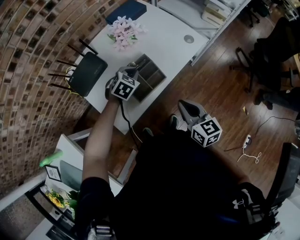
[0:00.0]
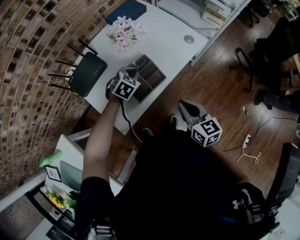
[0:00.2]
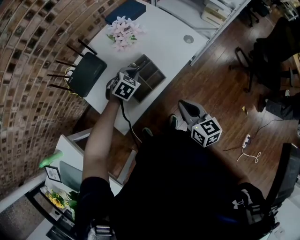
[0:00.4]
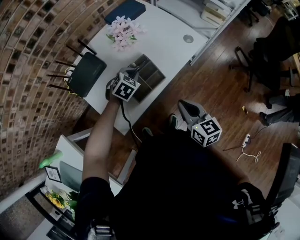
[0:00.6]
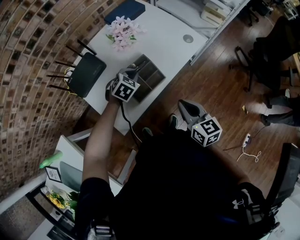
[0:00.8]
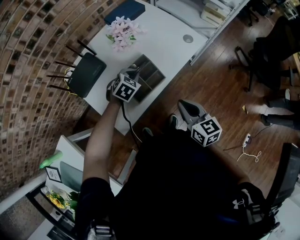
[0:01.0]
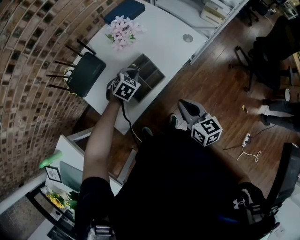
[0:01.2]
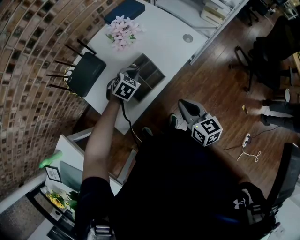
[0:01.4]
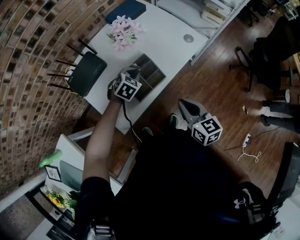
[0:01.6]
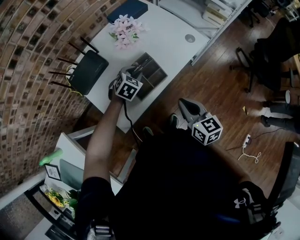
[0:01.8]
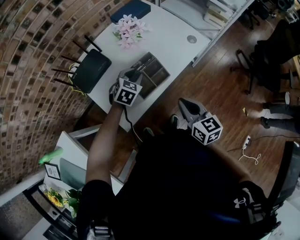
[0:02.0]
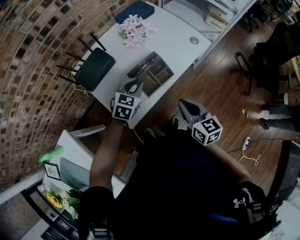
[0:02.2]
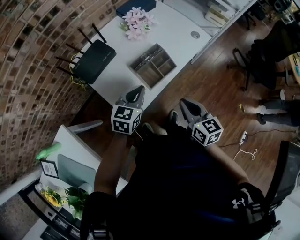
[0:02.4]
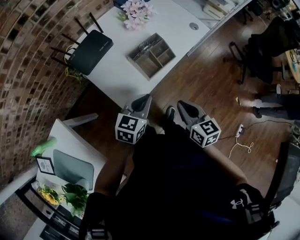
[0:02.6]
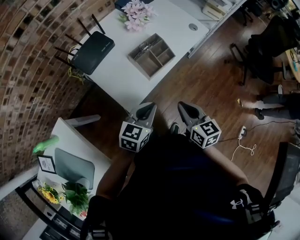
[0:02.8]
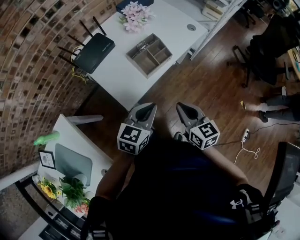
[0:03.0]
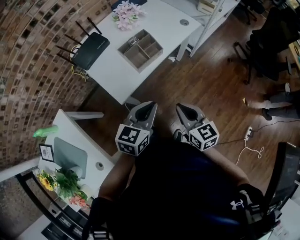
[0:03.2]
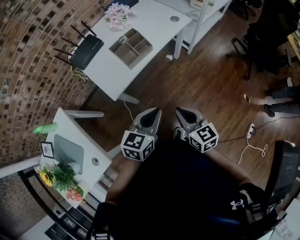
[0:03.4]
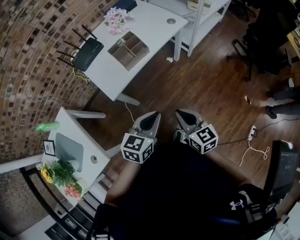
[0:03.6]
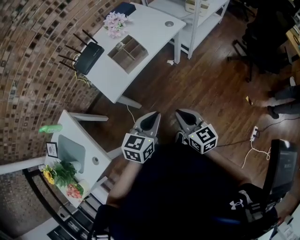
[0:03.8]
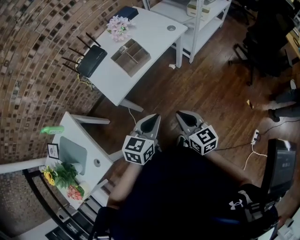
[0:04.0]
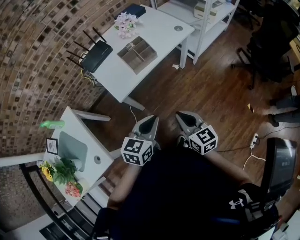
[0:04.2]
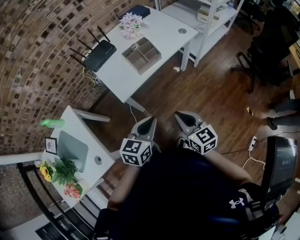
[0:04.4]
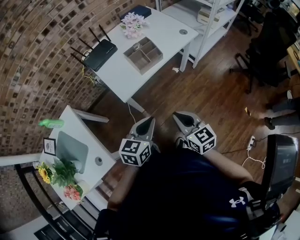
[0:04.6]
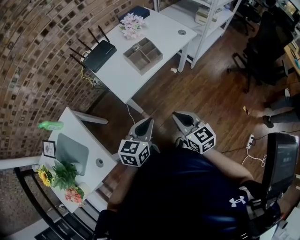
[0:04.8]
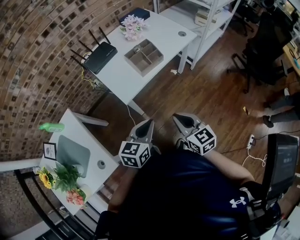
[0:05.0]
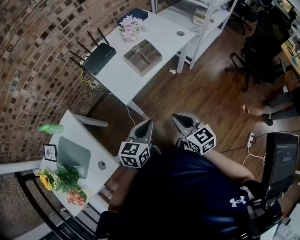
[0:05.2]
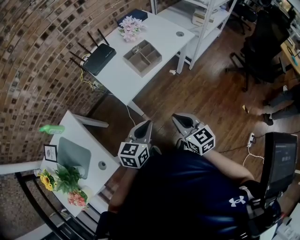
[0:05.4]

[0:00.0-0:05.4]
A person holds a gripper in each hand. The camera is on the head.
0:00.0 to 0:01.4: The grippers move only a little.
0:01.4 to 0:02.8: The right gripper travels backward and to the left by about 15 cm. Meanwhile the left gripper heads backward, covering about 25 cm, rotates roughly 40 degrees, and opens, then closes once more.
0:02.8 to 0:04.0: The grippers both shift to the right and backward by roughly 20 cm.
0:04.0 to 0:05.4: The two grippers go some 10 cm to the left.

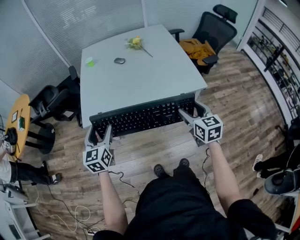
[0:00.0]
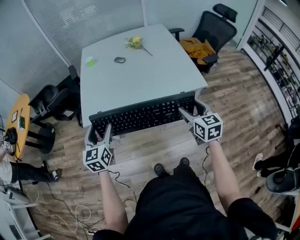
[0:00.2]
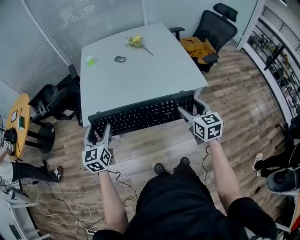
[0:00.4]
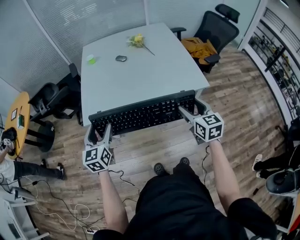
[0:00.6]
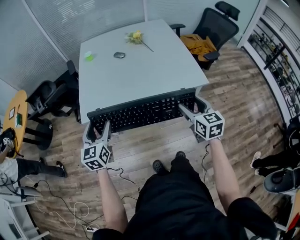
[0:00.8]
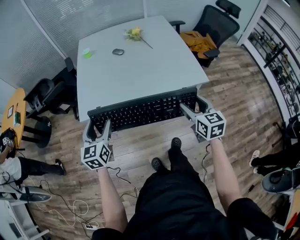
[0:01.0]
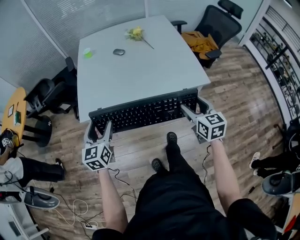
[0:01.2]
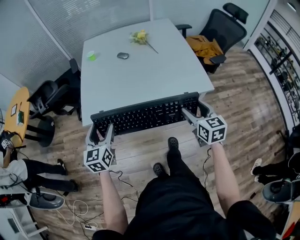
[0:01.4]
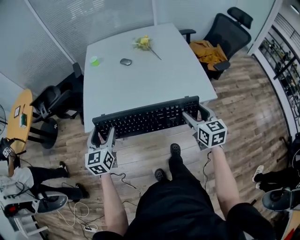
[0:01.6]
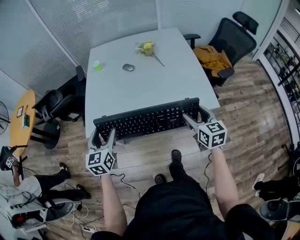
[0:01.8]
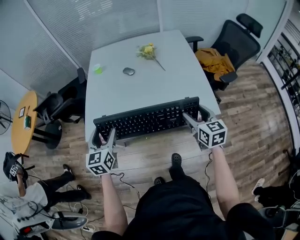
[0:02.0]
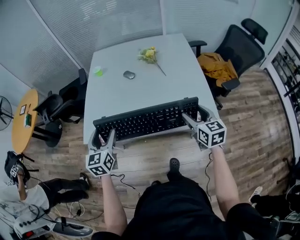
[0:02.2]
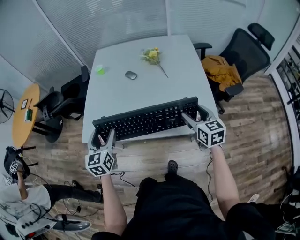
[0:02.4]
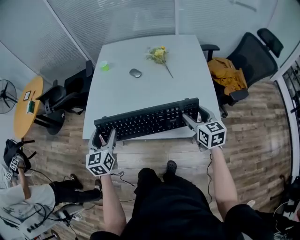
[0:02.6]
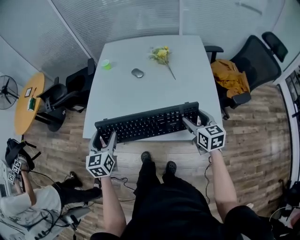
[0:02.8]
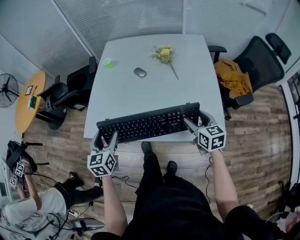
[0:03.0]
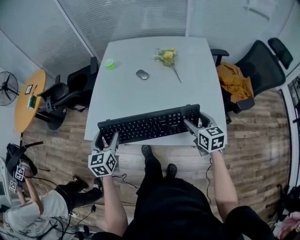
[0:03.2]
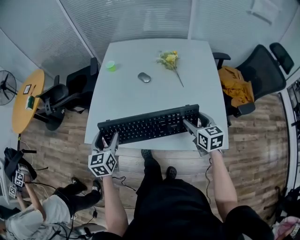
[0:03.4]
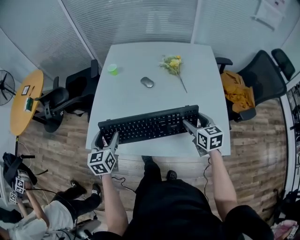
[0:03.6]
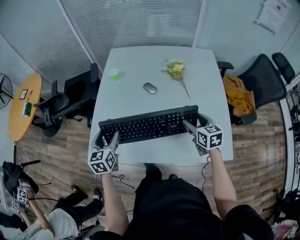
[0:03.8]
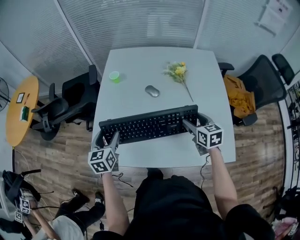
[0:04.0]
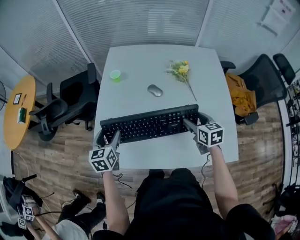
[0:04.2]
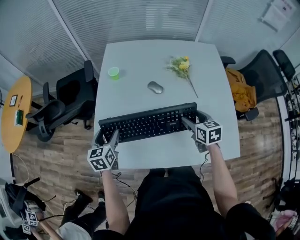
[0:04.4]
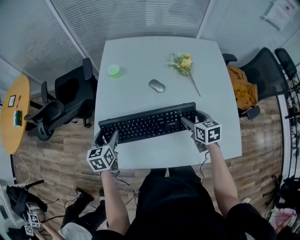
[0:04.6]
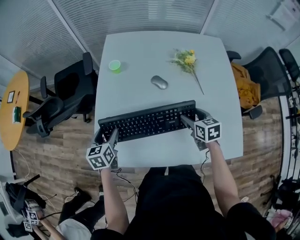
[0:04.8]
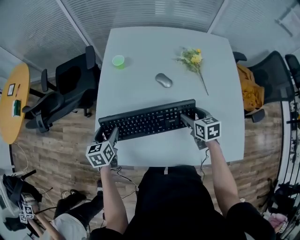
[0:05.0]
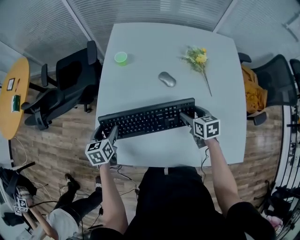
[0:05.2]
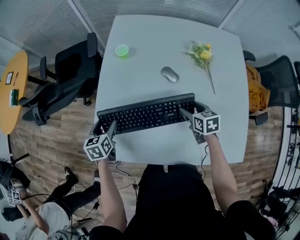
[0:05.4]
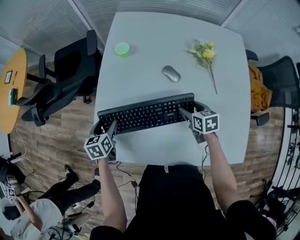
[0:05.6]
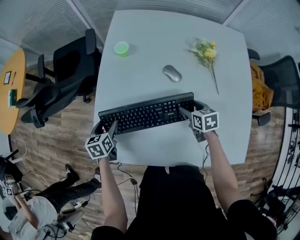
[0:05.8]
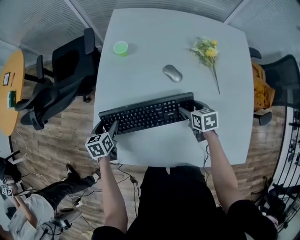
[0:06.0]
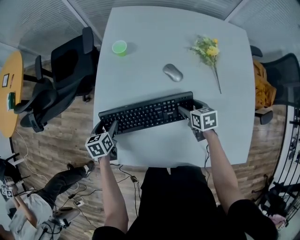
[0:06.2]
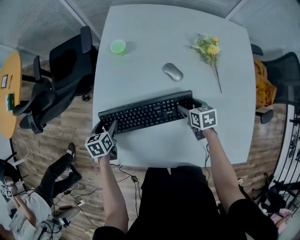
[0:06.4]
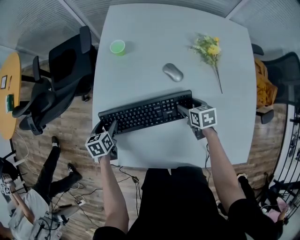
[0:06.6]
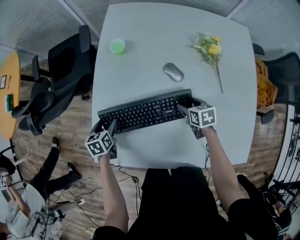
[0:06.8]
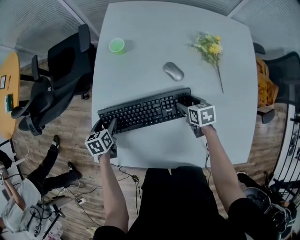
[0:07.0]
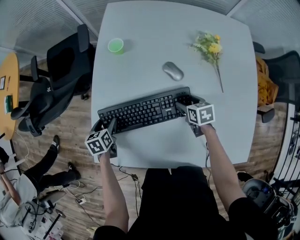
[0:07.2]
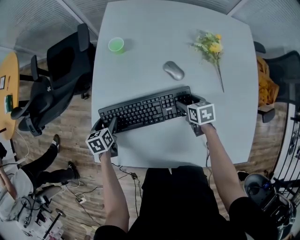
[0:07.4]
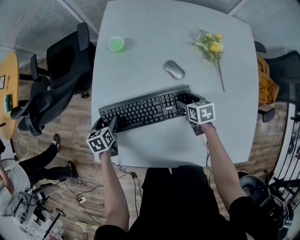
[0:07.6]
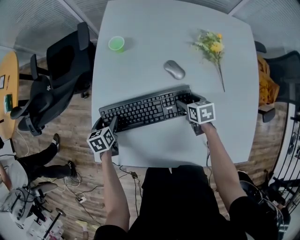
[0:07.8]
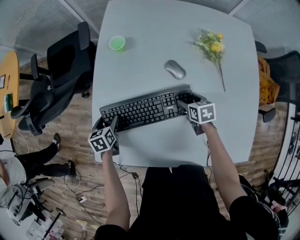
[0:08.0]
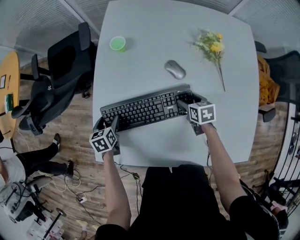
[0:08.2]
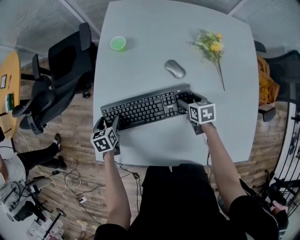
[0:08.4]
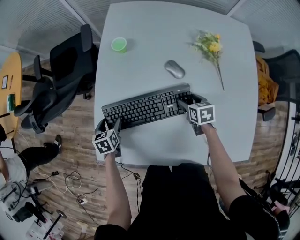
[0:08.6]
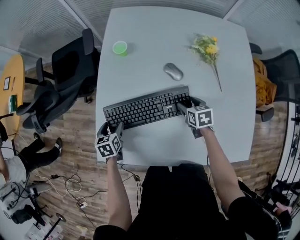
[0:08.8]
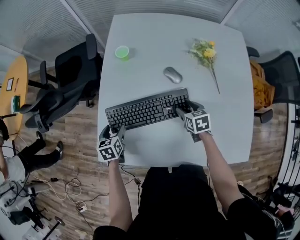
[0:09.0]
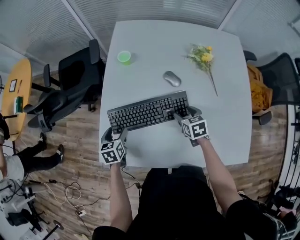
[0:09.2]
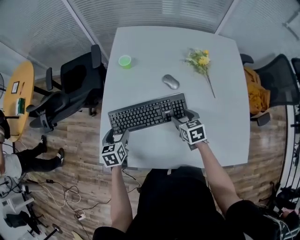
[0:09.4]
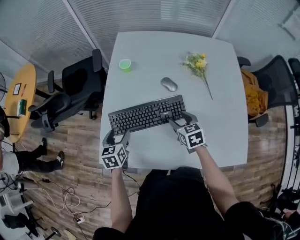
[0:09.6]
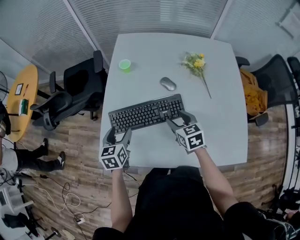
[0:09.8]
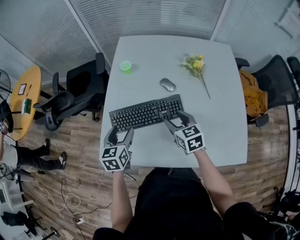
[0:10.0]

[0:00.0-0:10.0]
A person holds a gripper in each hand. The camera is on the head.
0:00.0 to 0:01.4: The grippers stay close to where they were, moving slightly.
0:01.4 to 0:02.8: The right gripper travels forward and to the right by approximately 25 cm; the left gripper shifts approximately 15 cm forward and to the right.
0:02.8 to 0:04.2: Both grippers move forward and to the left, roughly 25 cm.
0:04.2 to 0:05.8: The left gripper shifts approximately 15 cm downward, to the left and forward, and turns by roughly 20 degrees. Meanwhile the right gripper shifts approximately 20 cm downward, forward and to the left.
0:05.8 to 0:07.2: Both grippers move downward, about 5 cm.
0:07.2 to 0:08.6: The grippers stay close to where they were, moving slightly.
0:08.6 to 0:10.0: The left gripper is displaced upward, to the right and backward by roughly 20 cm, and turns by about 30 degrees, while the right gripper heads upward, backward and to the left, covering some 20 cm, and rotates some 30 degrees.

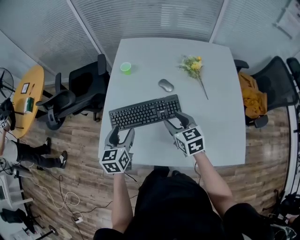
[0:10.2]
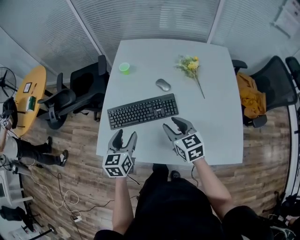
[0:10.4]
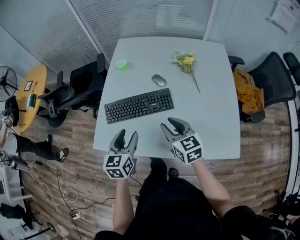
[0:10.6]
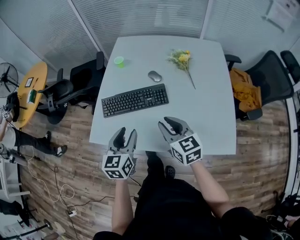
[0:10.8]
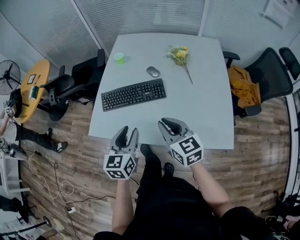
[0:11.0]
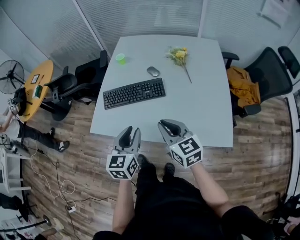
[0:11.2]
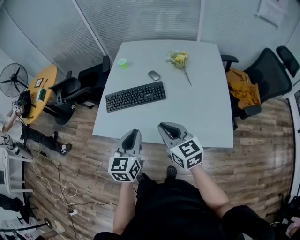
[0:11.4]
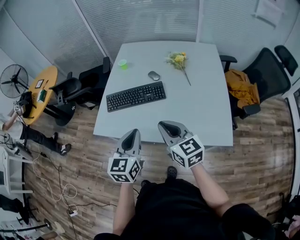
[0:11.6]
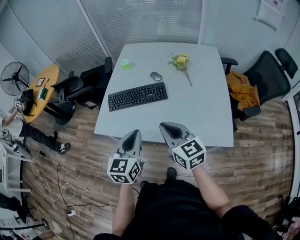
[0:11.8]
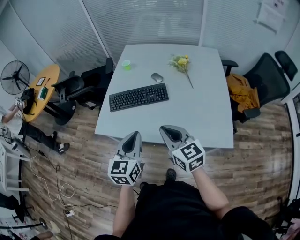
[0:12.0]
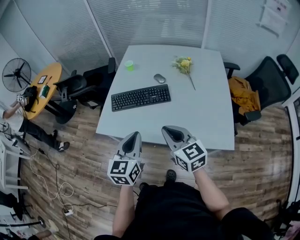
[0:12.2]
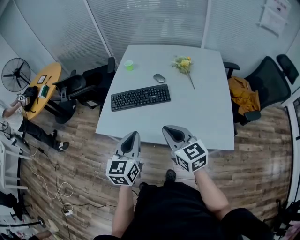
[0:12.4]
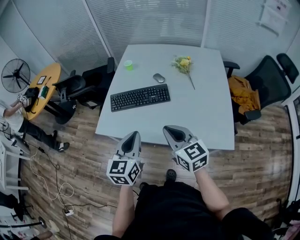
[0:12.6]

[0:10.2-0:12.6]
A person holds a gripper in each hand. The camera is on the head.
0:10.2 to 0:11.4: The right gripper shifts roughly 25 cm backward and upward, and closes its fingers. Meanwhile the left gripper shifts approximately 25 cm backward and to the right, and closes up.
0:11.4 to 0:12.6: The grippers move only a little.

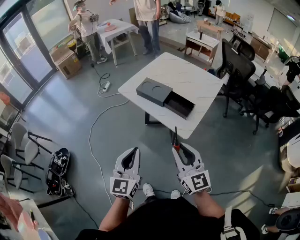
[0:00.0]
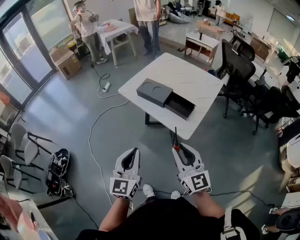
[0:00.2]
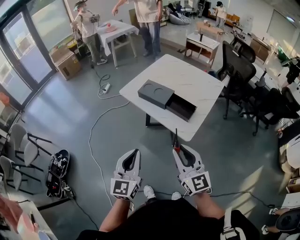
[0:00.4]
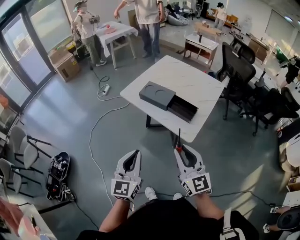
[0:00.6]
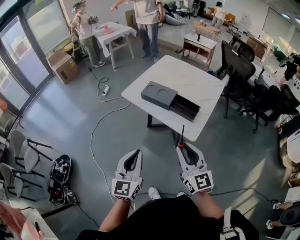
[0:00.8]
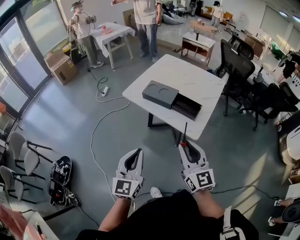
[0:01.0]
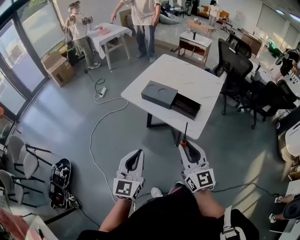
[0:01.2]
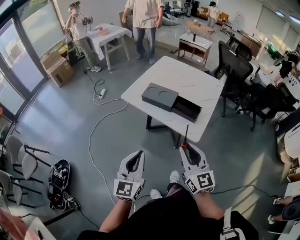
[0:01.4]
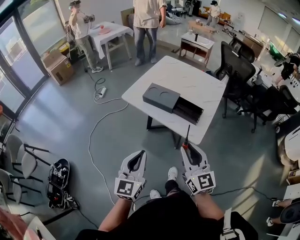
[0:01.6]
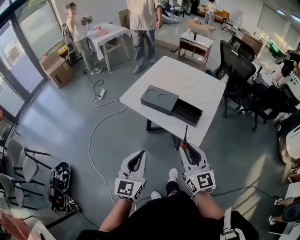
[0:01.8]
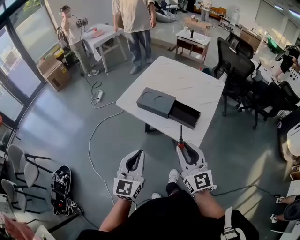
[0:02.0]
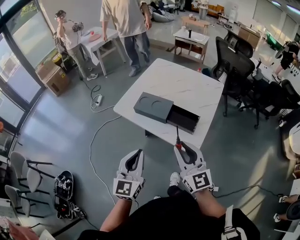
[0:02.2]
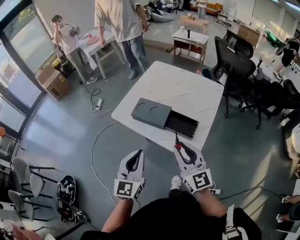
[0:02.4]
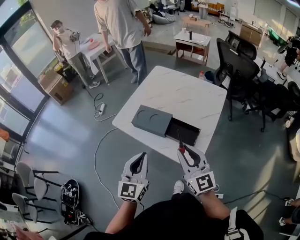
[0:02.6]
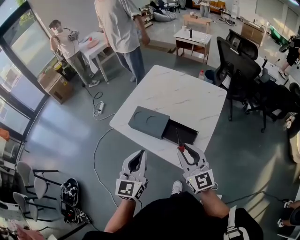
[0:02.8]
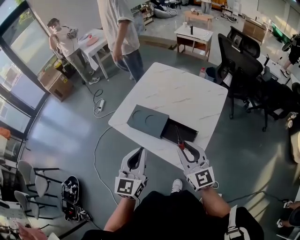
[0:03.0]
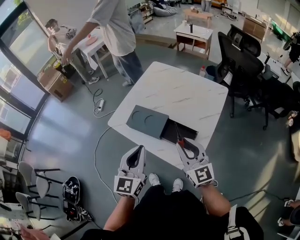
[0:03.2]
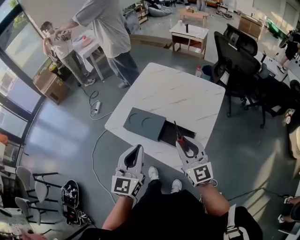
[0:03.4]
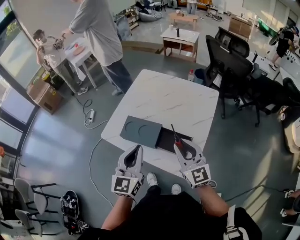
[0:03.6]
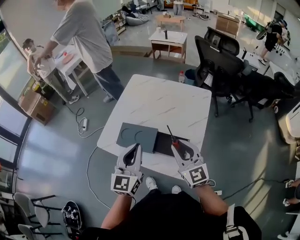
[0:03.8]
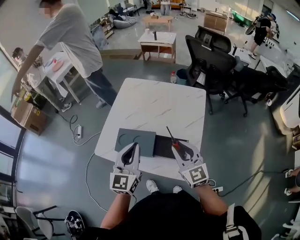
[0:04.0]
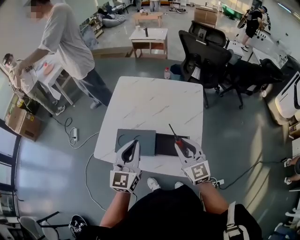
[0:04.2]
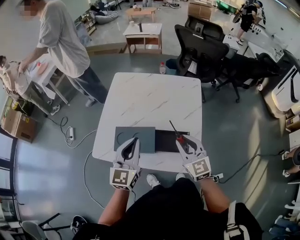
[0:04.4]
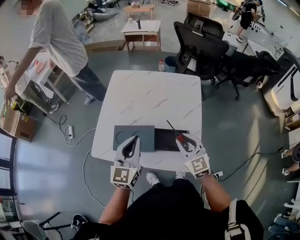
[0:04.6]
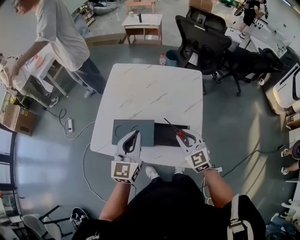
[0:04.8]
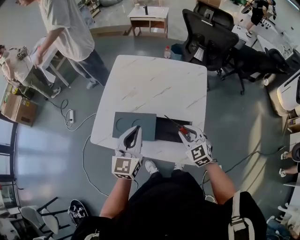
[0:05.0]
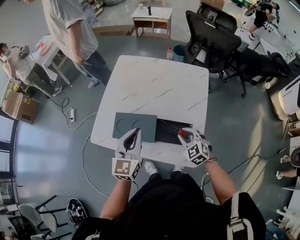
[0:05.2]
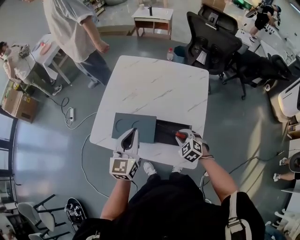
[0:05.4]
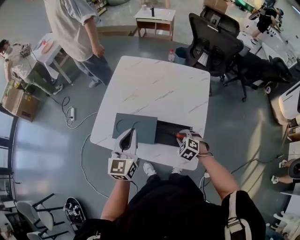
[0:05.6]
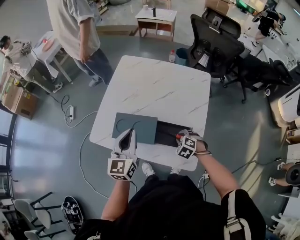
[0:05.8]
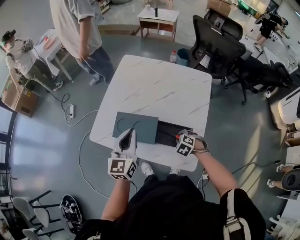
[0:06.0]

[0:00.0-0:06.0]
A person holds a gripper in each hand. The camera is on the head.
0:00.0 to 0:01.6: The right gripper goes some 5 cm to the left, while the left gripper travels to the left and forward by approximately 10 cm.
0:01.6 to 0:03.0: Both grippers move forward and to the right, about 25 cm.
0:03.0 to 0:04.4: The right gripper moves forward and downward, some 10 cm, and changes its angle by some 30 degrees. The left gripper goes about 15 cm forward, and swivels some 20 degrees.
0:04.4 to 0:06.0: The right gripper moves downward, about 25 cm, and points its fingers approximately 60 degrees further downward. The left gripper is displaced downward by roughly 5 cm.
